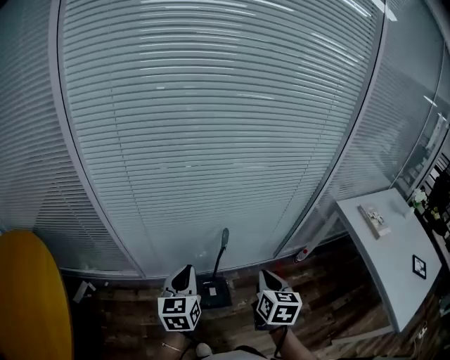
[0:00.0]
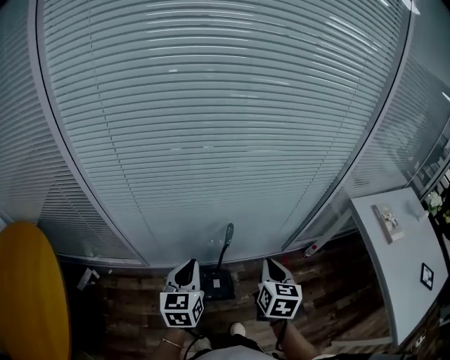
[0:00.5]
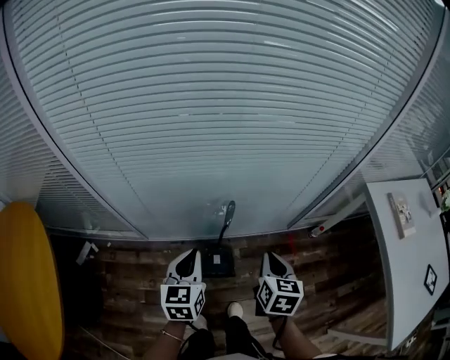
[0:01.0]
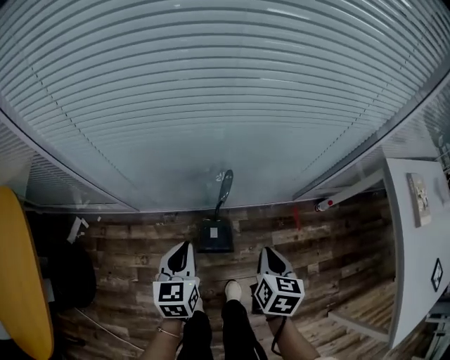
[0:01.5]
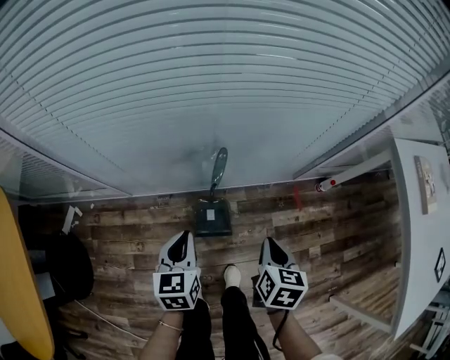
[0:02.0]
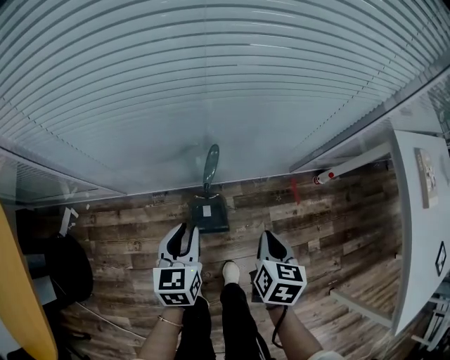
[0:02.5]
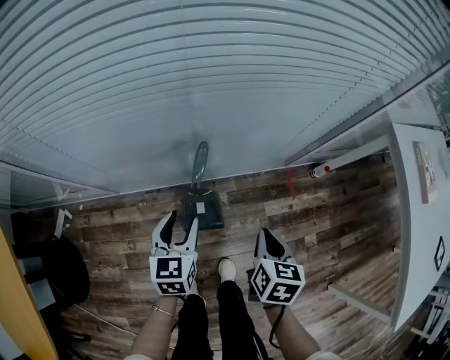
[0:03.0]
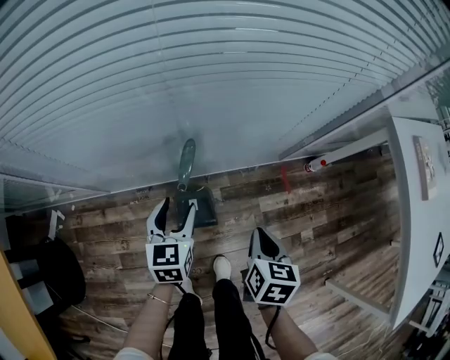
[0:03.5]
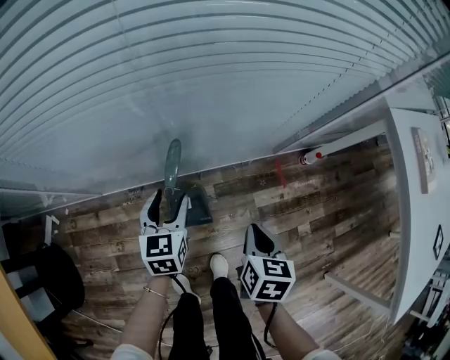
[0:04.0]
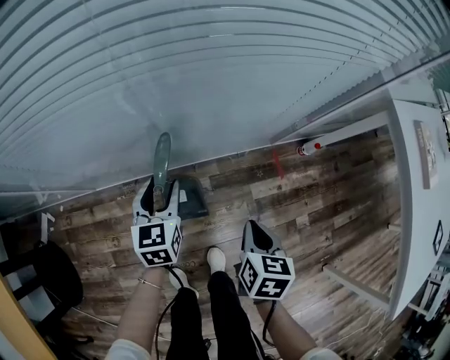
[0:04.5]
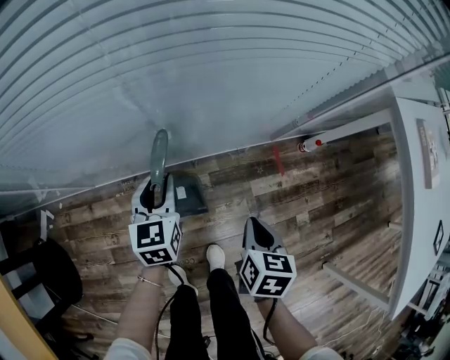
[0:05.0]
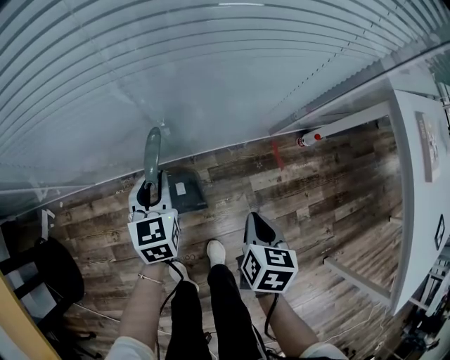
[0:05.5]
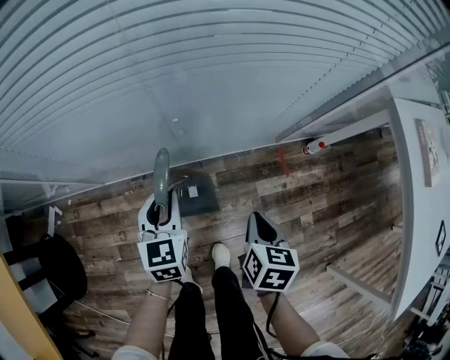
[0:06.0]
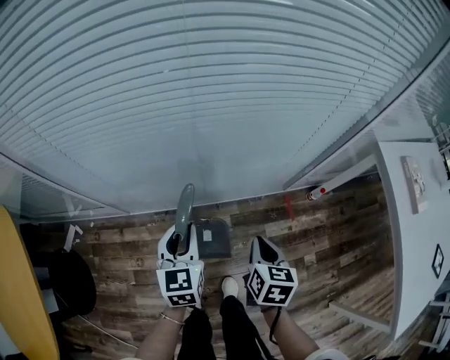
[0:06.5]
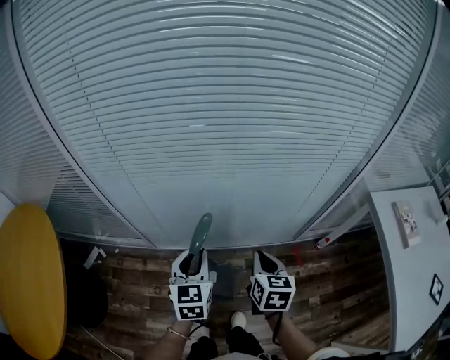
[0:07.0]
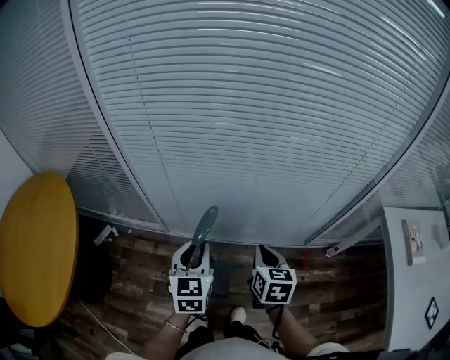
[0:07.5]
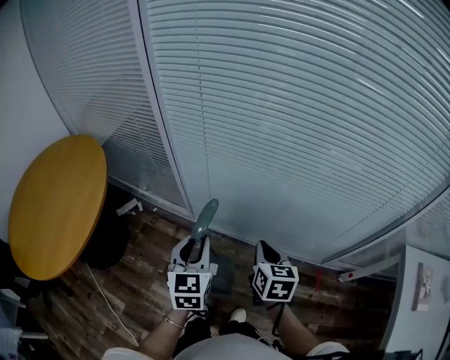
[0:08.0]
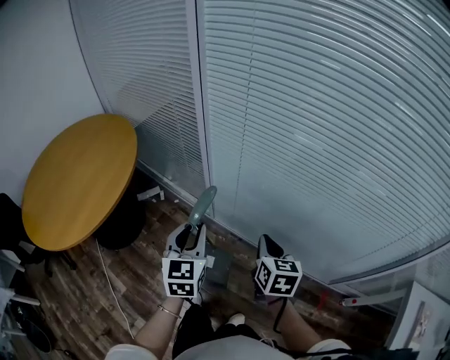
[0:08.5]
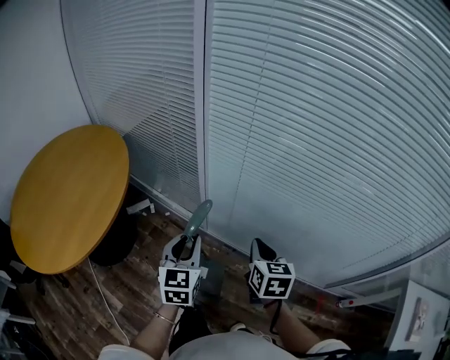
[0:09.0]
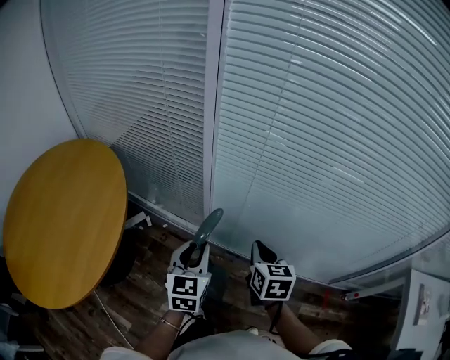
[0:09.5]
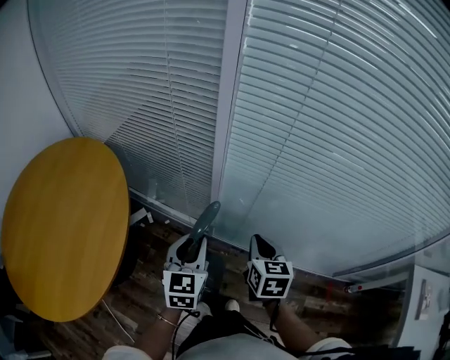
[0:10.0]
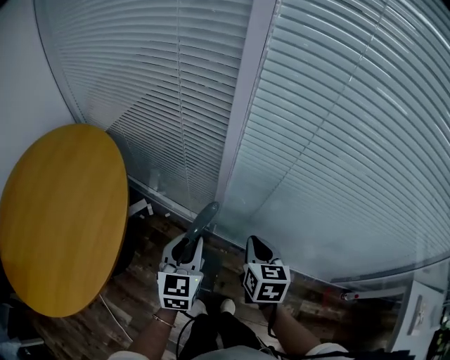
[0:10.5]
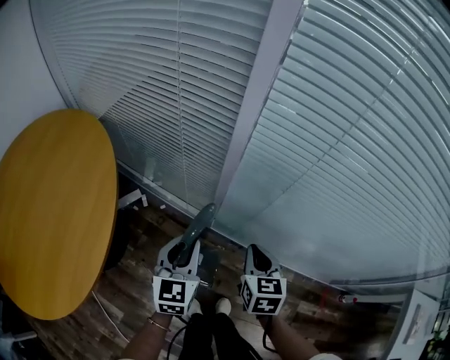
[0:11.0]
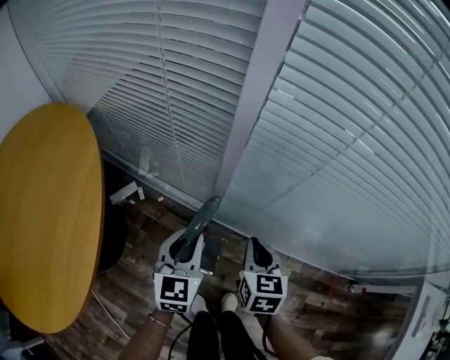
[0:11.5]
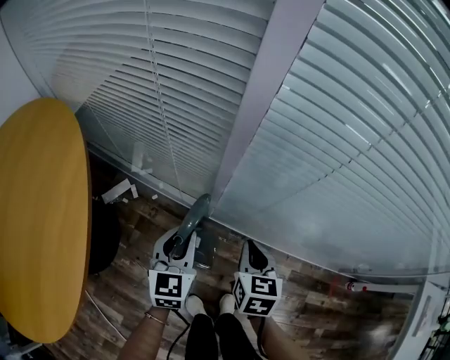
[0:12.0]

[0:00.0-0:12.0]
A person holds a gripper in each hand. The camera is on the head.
0:00.0 to 0:02.0: The two grippers go some 20 cm downward. The left gripper rotates roughly 20 degrees.
0:02.0 to 0:04.0: The right gripper moves about 5 cm. Meanwhile the left gripper goes some 15 cm forward and downward, and opens.
0:04.0 to 0:06.0: The left gripper closes.
0:06.0 to 0:08.0: The two grippers go roughly 25 cm upward. The right gripper turns by roughly 40 degrees; the left gripper rotates approximately 30 degrees.
0:08.0 to 0:10.0: The grippers both shift to the left and forward by roughly 25 cm.
0:10.0 to 0:12.0: The right gripper heads downward, covering roughly 15 cm. Meanwhile the left gripper goes some 20 cm downward and forward.

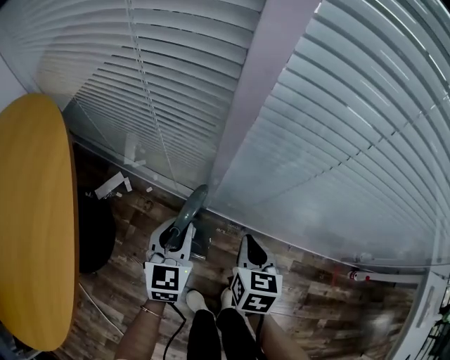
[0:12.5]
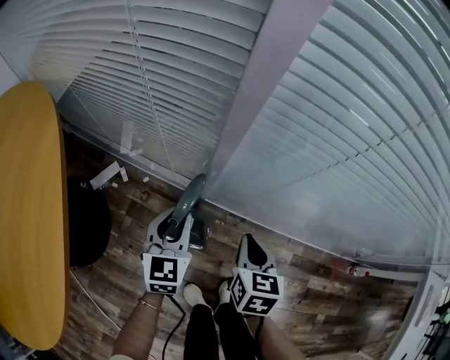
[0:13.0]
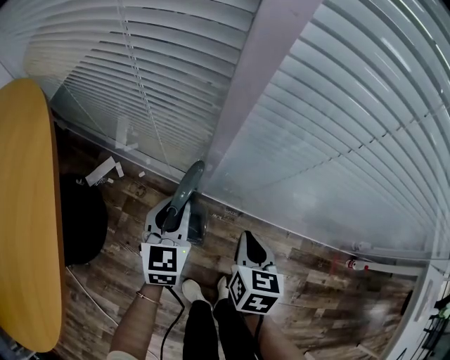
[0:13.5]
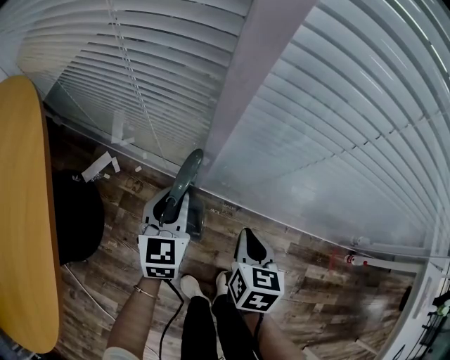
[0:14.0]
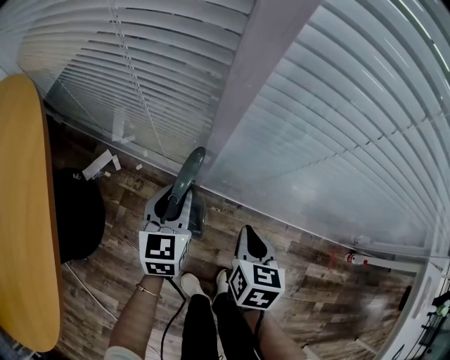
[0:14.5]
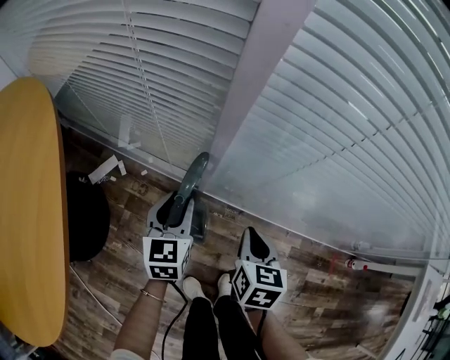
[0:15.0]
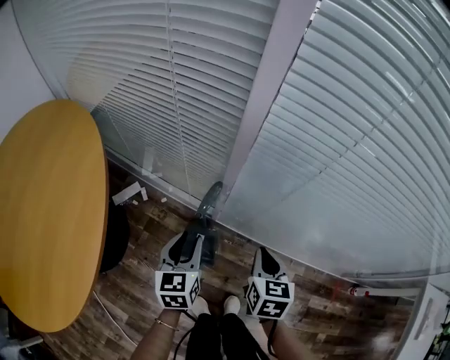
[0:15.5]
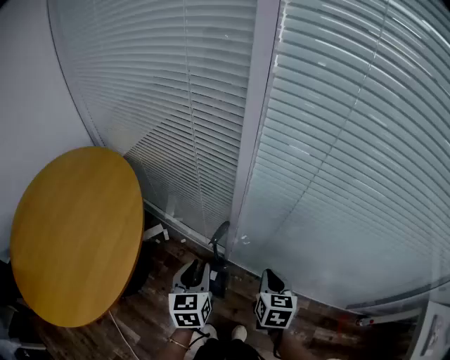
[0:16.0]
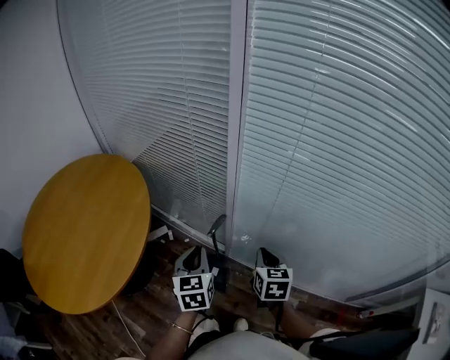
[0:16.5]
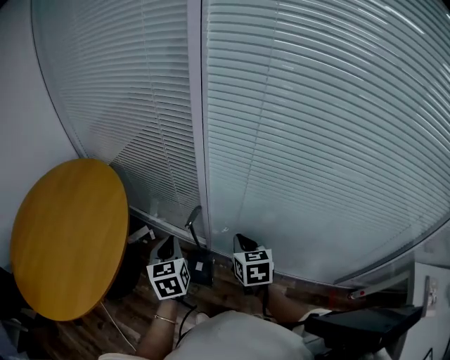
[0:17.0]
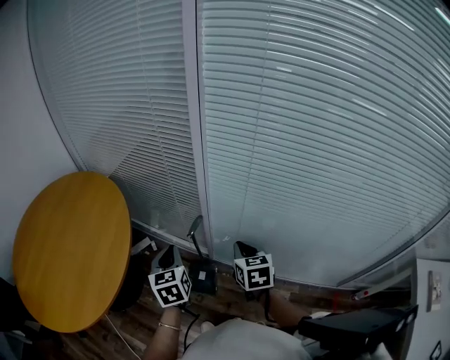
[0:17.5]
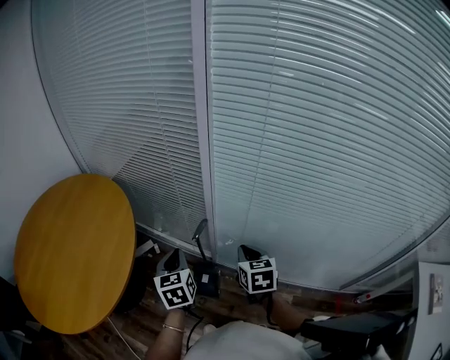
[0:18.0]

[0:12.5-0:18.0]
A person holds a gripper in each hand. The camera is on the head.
0:12.5 to 0:14.5: The left gripper shifts by some 5 cm.
0:14.5 to 0:16.0: The left gripper moves upward and backward, about 20 cm. Meanwhile the right gripper heads upward, covering some 15 cm.
0:16.0 to 0:18.0: The grippers both shift upward by about 5 cm. The left gripper closes its fingers.

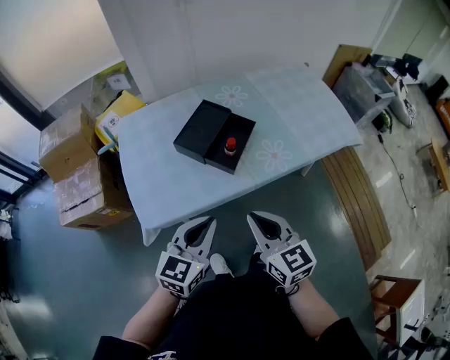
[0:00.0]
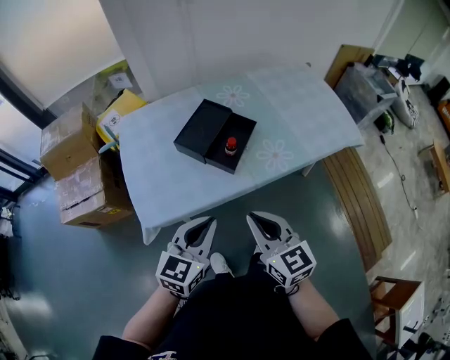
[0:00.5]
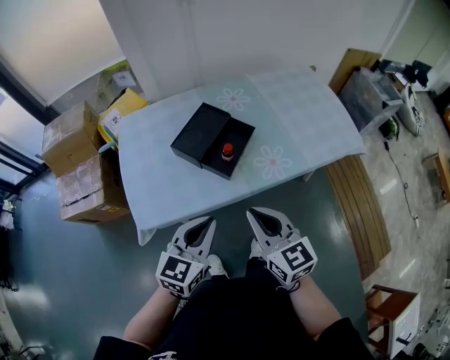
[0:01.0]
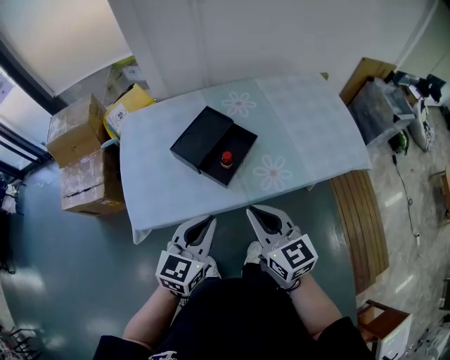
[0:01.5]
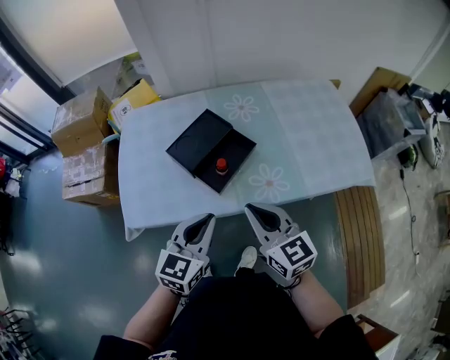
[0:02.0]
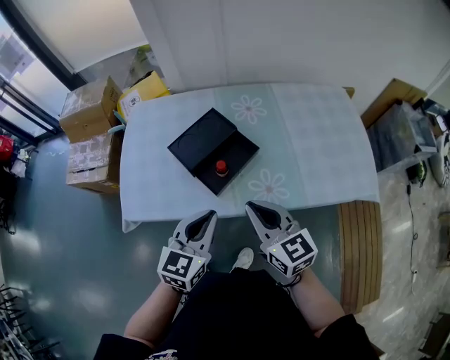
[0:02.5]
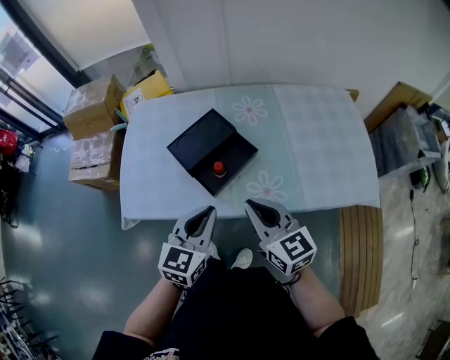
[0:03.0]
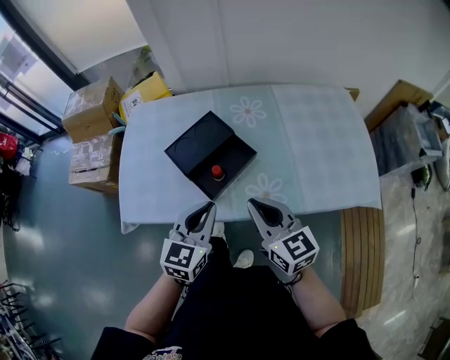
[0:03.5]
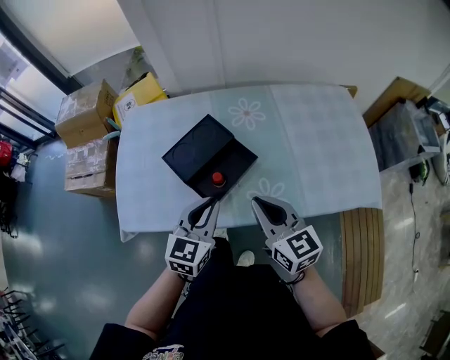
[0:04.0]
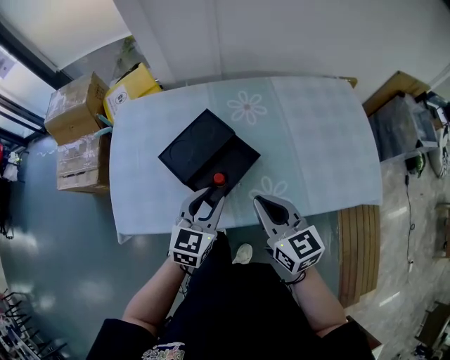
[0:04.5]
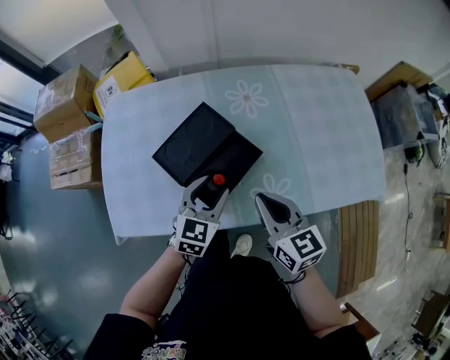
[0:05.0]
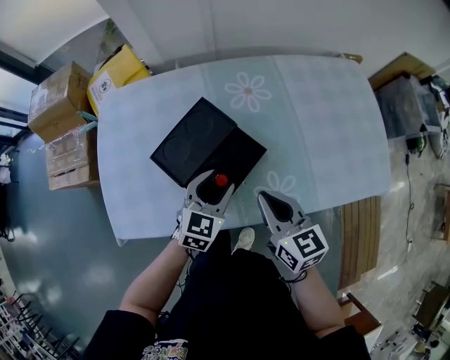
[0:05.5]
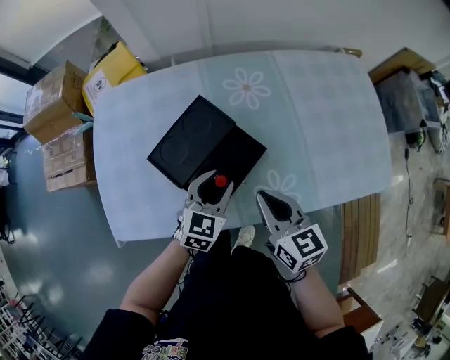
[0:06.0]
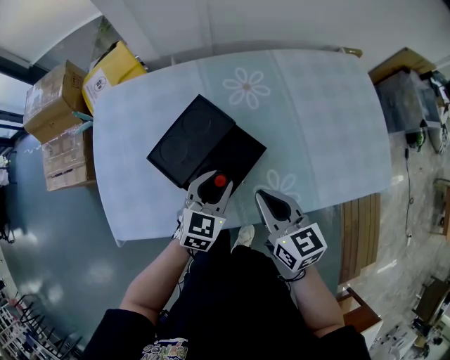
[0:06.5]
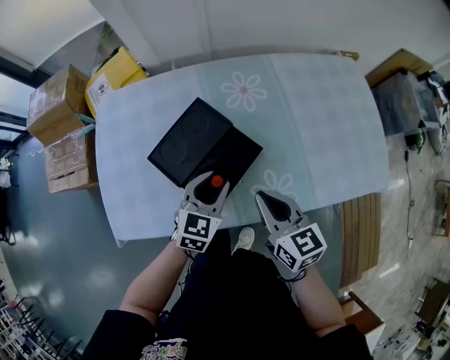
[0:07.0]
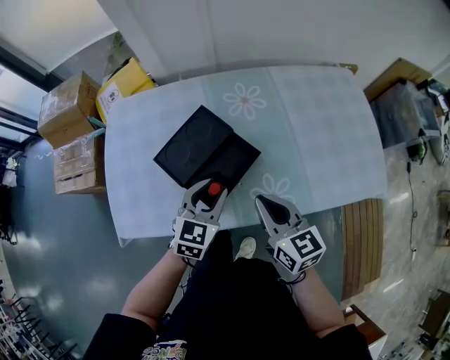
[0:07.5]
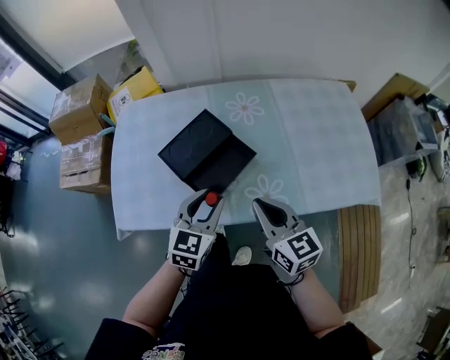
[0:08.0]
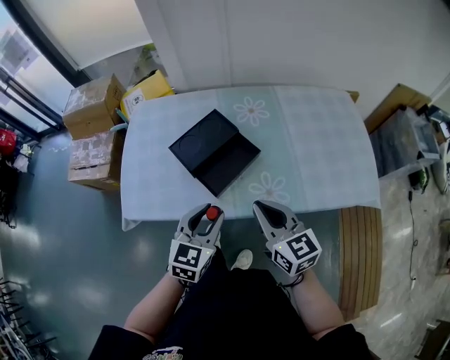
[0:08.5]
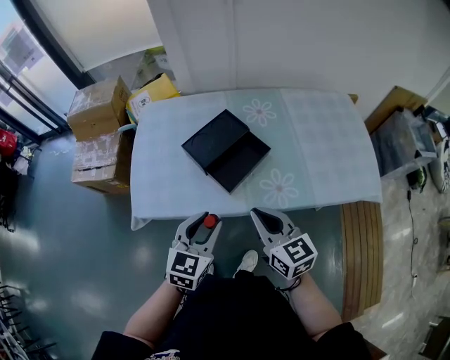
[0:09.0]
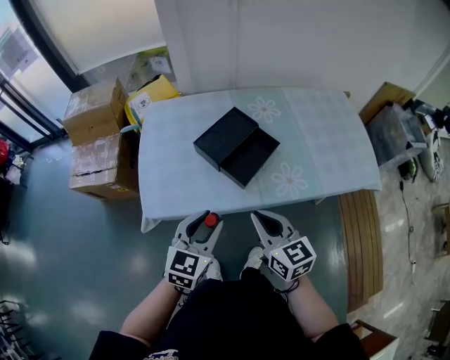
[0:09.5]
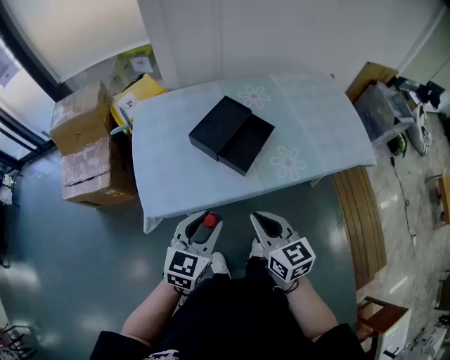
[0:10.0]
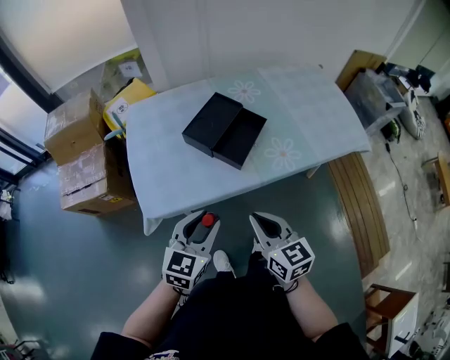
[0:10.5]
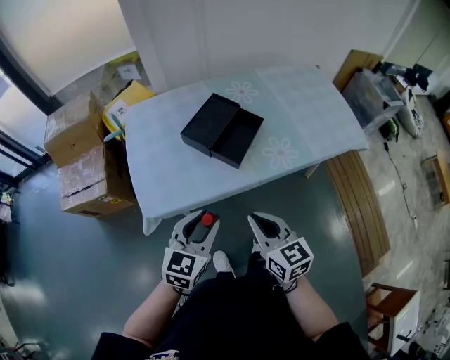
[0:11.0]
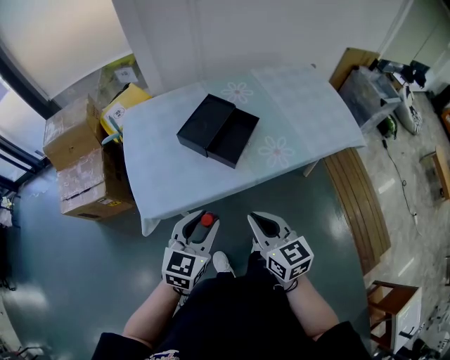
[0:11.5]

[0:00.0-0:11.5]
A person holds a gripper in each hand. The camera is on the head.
0:00.0 to 0:02.0: The left gripper goes about 15 cm to the right and forward, while the right gripper shifts roughly 15 cm forward and to the right.
0:02.0 to 0:04.0: The right gripper heads forward and to the right, covering approximately 10 cm. Meanwhile the left gripper moves forward, about 10 cm.
0:04.0 to 0:06.0: The left gripper moves downward and forward, about 15 cm, and opens up. The right gripper heads downward and forward, covering roughly 10 cm.
0:06.0 to 0:07.5: The left gripper travels upward by some 5 cm.
0:07.5 to 0:09.5: The left gripper goes some 25 cm backward, to the left and upward. Meanwhile the right gripper is displaced backward and to the left by roughly 20 cm.
0:09.5 to 0:11.5: The left gripper moves backward, some 5 cm. The right gripper shifts approximately 10 cm backward.
